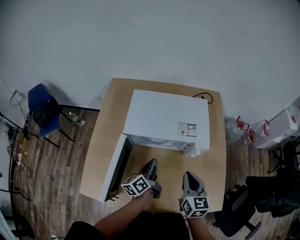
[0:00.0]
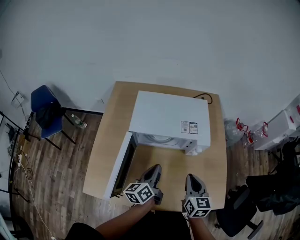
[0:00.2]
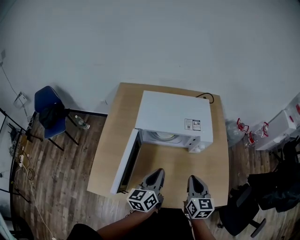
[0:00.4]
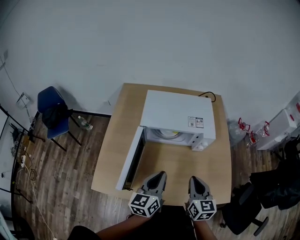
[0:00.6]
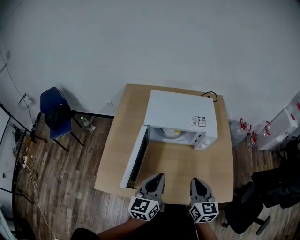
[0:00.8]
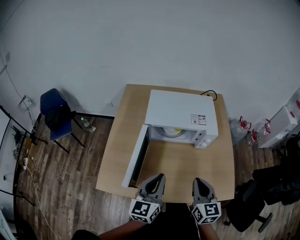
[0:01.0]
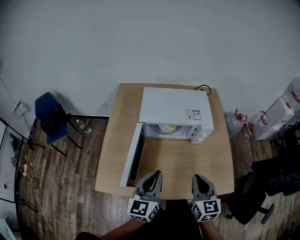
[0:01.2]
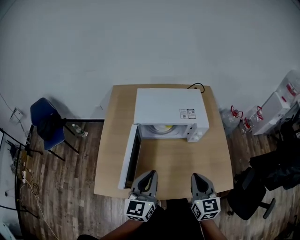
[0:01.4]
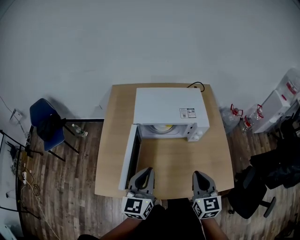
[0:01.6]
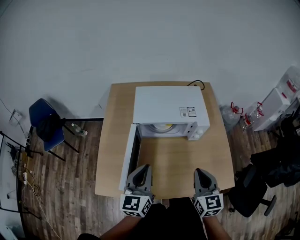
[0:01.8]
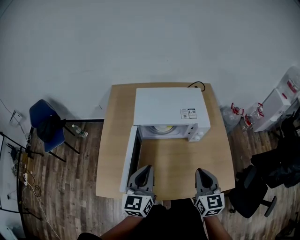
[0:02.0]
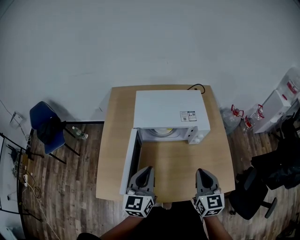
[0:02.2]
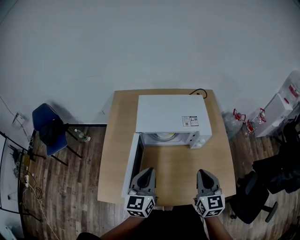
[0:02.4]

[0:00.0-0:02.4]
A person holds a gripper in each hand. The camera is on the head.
0:00.0 to 0:01.2: The right gripper changes place by about 15 cm.
0:01.2 to 0:02.4: The right gripper moves roughly 5 cm.

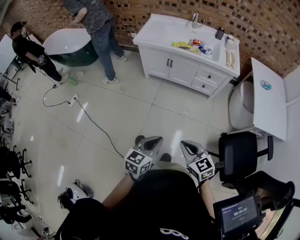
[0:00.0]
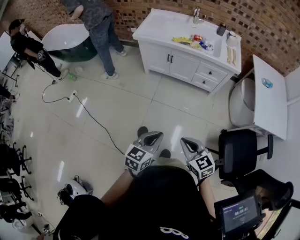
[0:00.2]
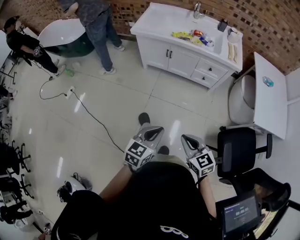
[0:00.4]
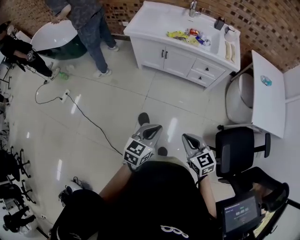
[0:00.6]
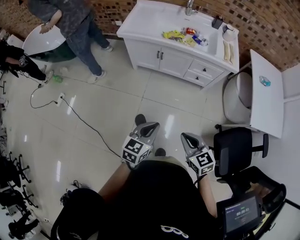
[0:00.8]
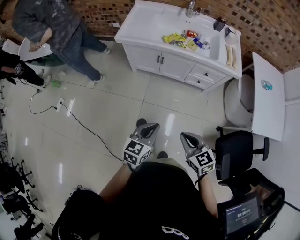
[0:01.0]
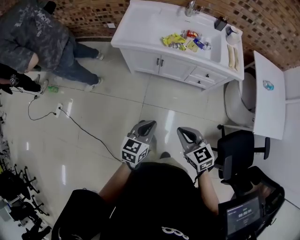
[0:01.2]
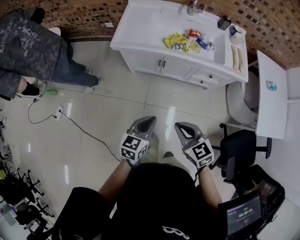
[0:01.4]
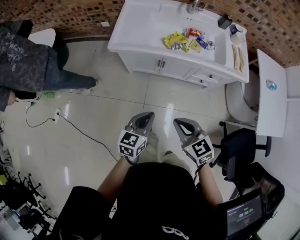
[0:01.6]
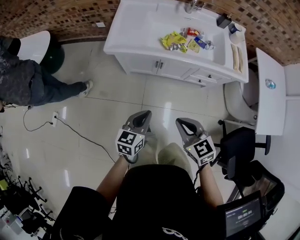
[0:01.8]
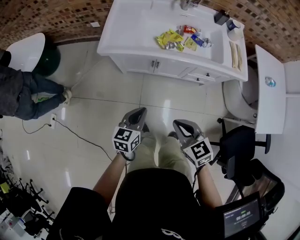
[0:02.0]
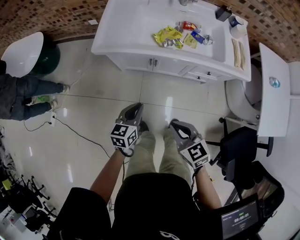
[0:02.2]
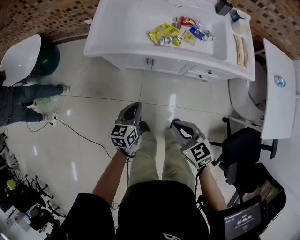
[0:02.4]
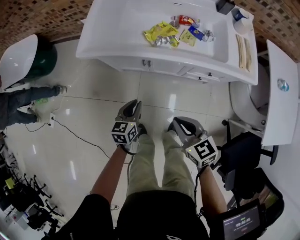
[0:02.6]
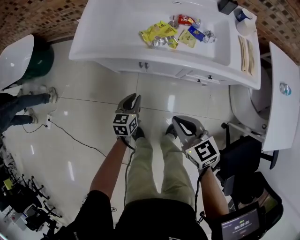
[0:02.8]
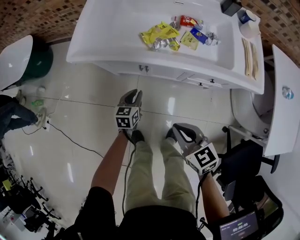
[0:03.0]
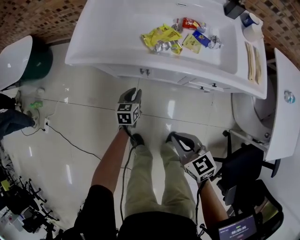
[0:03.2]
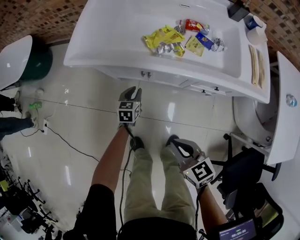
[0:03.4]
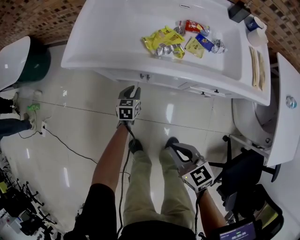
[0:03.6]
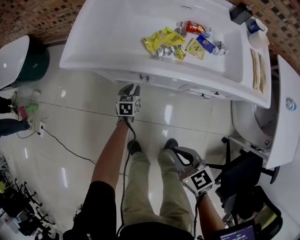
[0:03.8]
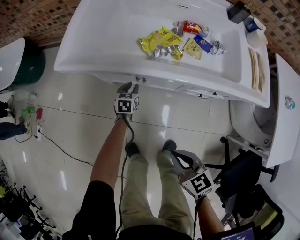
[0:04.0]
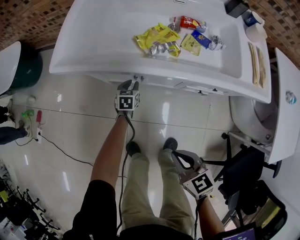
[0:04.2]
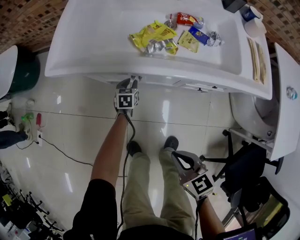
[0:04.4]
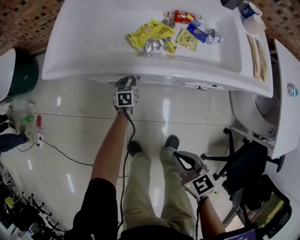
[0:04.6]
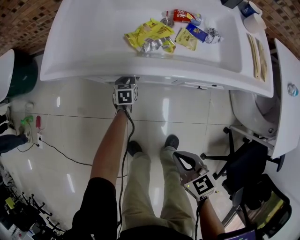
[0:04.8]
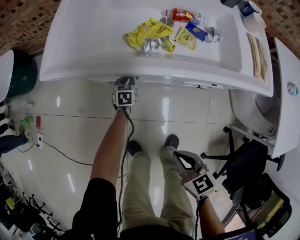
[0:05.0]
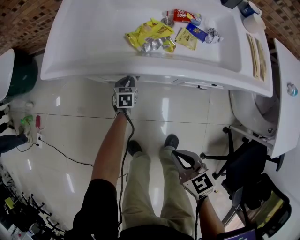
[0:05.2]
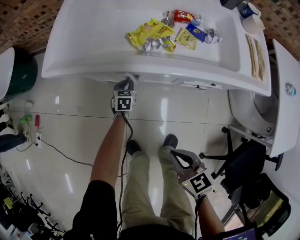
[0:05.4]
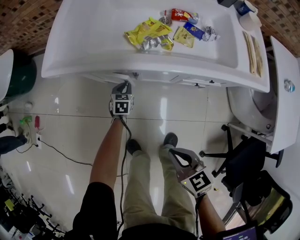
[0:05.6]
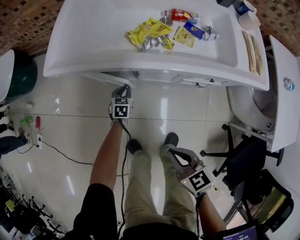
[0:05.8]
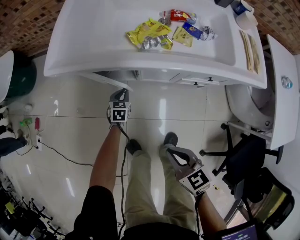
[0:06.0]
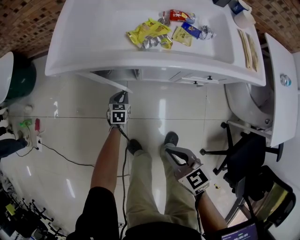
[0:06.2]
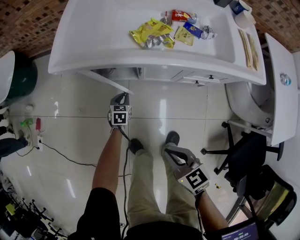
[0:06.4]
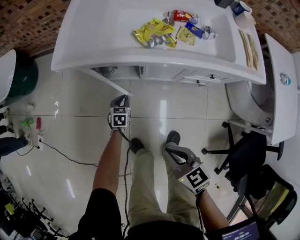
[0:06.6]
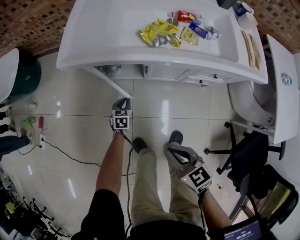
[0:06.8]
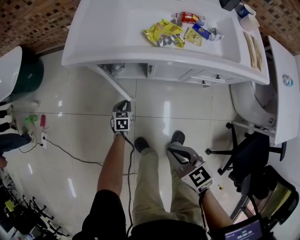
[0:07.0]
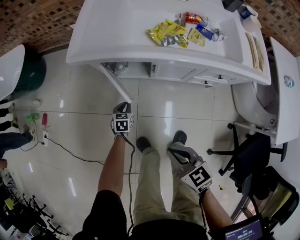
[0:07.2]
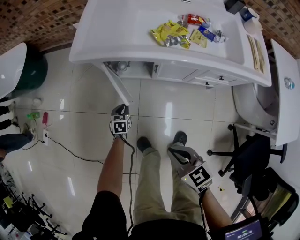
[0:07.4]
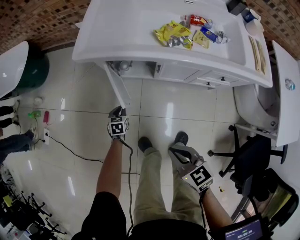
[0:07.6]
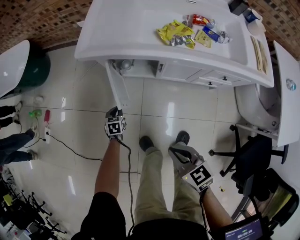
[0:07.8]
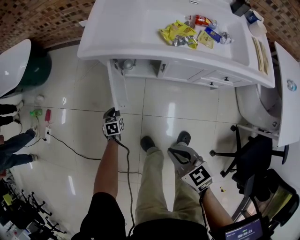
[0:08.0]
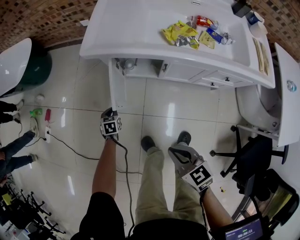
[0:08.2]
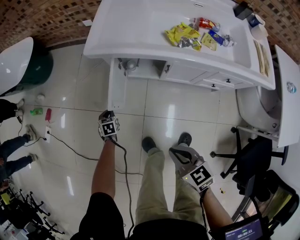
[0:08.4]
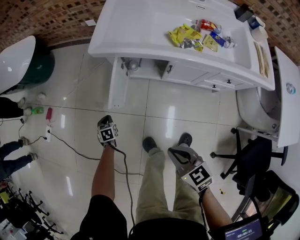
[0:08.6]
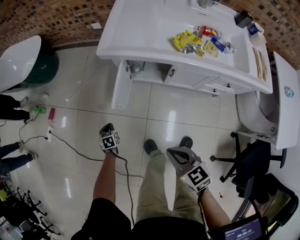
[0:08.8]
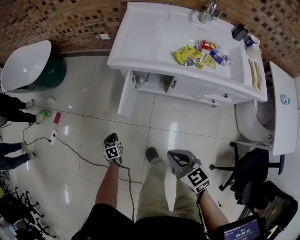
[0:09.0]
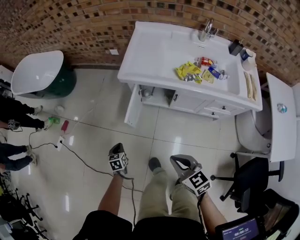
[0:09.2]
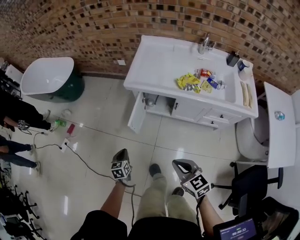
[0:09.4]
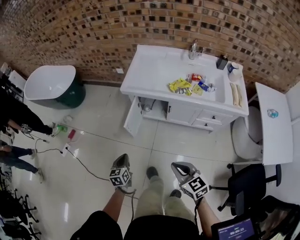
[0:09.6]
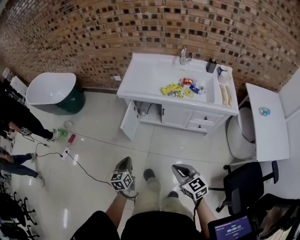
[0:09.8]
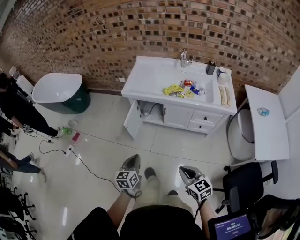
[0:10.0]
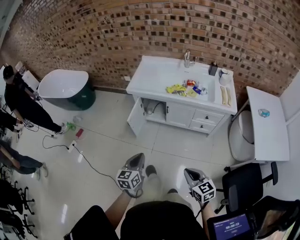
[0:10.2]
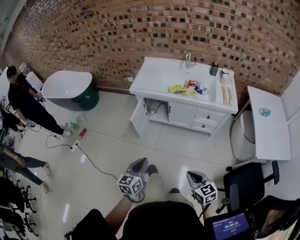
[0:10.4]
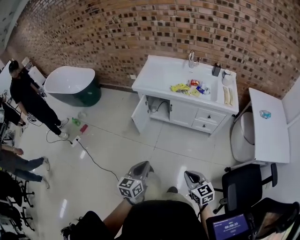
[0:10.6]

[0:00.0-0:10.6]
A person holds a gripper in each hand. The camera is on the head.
0:00.0 to 0:01.6: Both grippers are carried forward, about 40 cm.
0:01.6 to 0:03.0: The left gripper moves downward and forward, about 35 cm, while the right gripper moves downward, to the right and forward, some 25 cm.
0:03.0 to 0:04.6: The left gripper heads downward and forward, covering roughly 20 cm. The right gripper goes some 10 cm downward.
0:04.6 to 0:06.0: The left gripper goes approximately 10 cm backward and to the left.
0:06.0 to 0:07.6: The right gripper goes roughly 10 cm to the left, while the left gripper travels to the left and backward by roughly 20 cm.
0:07.6 to 0:09.0: The left gripper moves to the left, about 20 cm; the right gripper shifts roughly 10 cm to the left and upward.
0:09.0 to 0:10.6: The left gripper goes some 60 cm upward, backward and to the right, and points its fingers some 40 degrees further upward. The right gripper goes some 35 cm backward and upward.

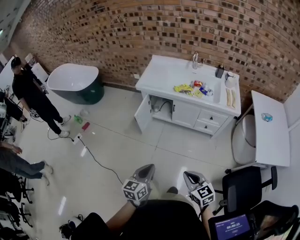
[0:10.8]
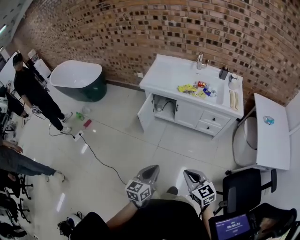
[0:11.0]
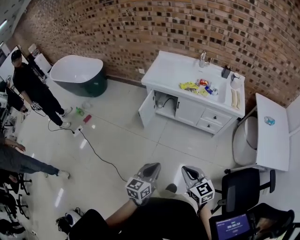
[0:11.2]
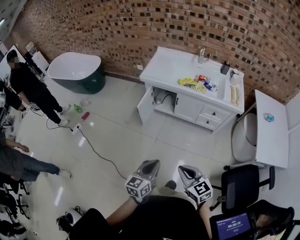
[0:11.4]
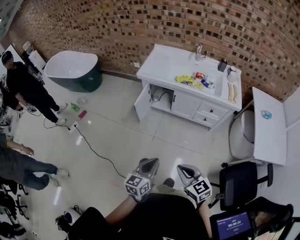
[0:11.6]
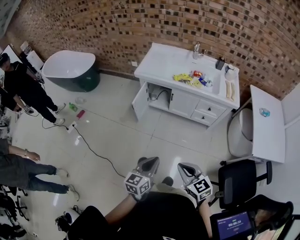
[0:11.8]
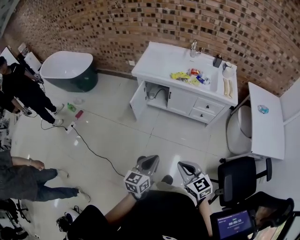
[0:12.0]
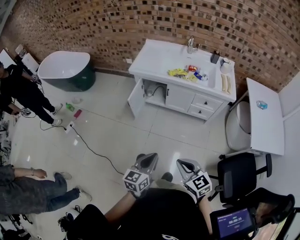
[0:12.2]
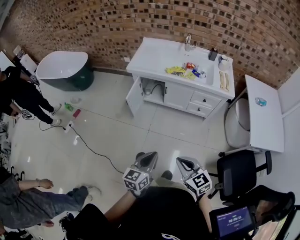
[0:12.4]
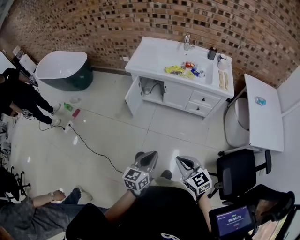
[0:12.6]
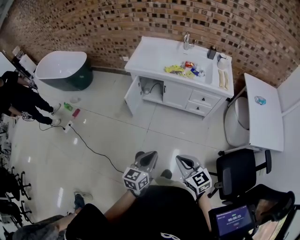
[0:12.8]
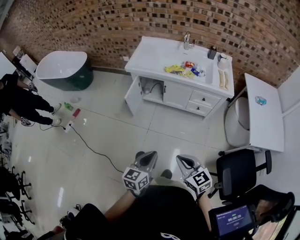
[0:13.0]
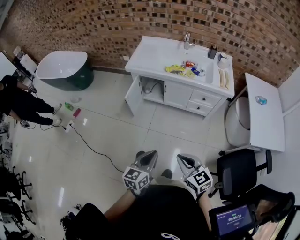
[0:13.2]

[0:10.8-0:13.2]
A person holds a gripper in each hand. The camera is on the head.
0:10.8 to 0:13.2: The grippers stay close to where they were, moving slightly.

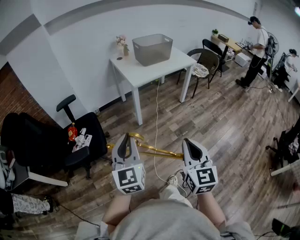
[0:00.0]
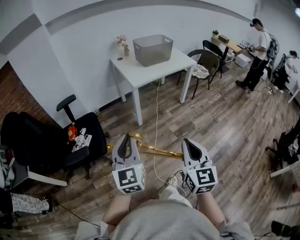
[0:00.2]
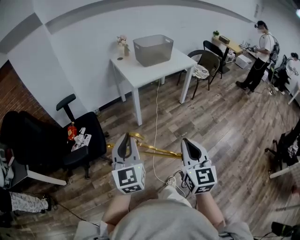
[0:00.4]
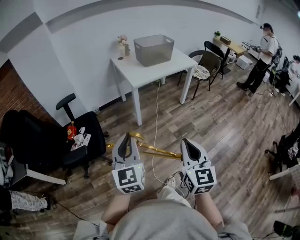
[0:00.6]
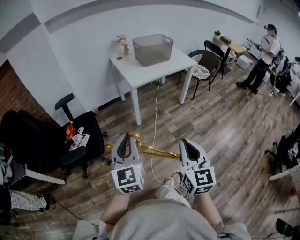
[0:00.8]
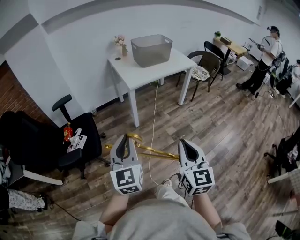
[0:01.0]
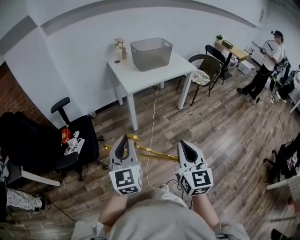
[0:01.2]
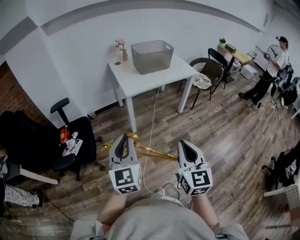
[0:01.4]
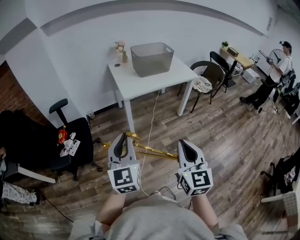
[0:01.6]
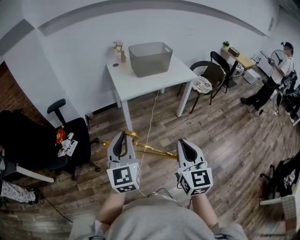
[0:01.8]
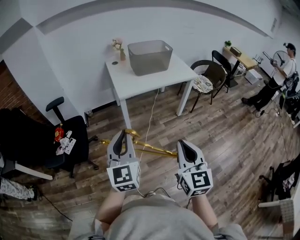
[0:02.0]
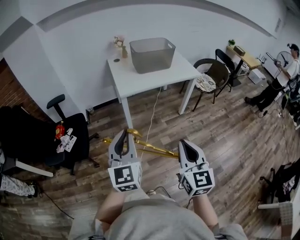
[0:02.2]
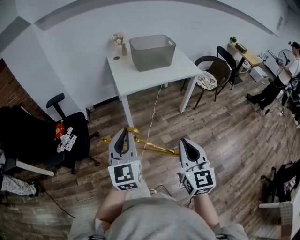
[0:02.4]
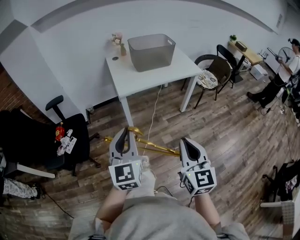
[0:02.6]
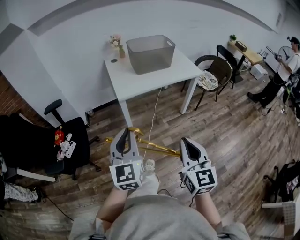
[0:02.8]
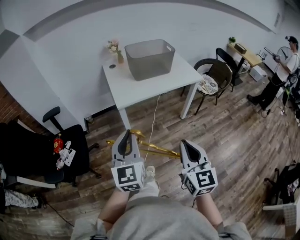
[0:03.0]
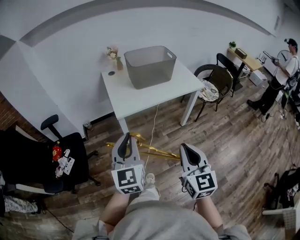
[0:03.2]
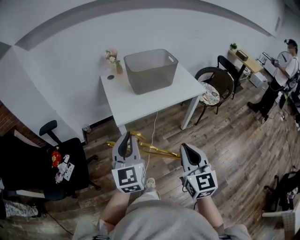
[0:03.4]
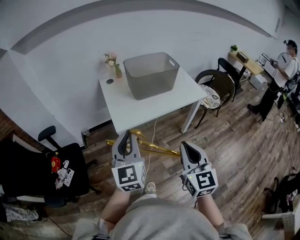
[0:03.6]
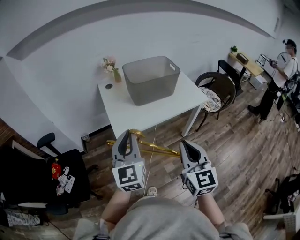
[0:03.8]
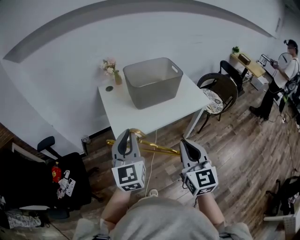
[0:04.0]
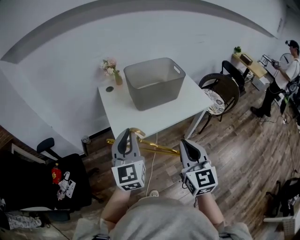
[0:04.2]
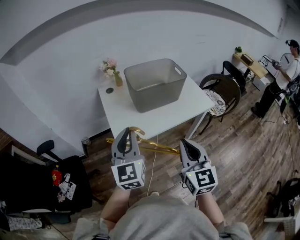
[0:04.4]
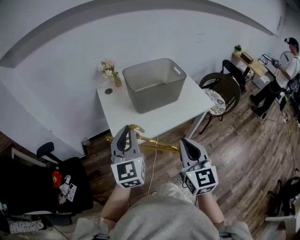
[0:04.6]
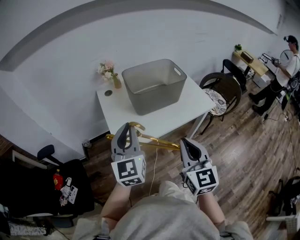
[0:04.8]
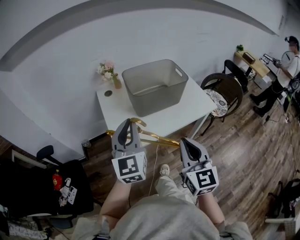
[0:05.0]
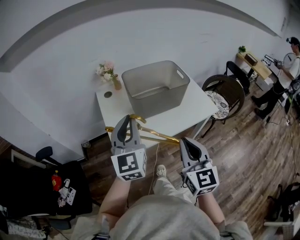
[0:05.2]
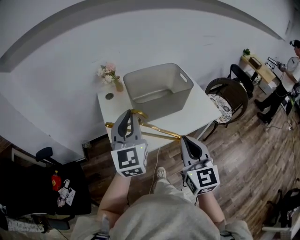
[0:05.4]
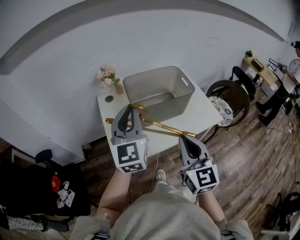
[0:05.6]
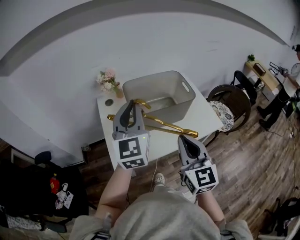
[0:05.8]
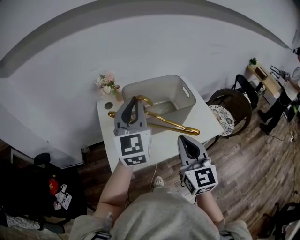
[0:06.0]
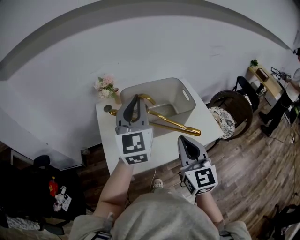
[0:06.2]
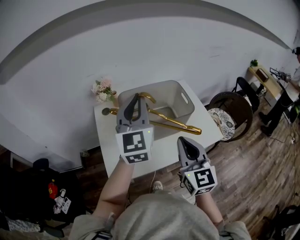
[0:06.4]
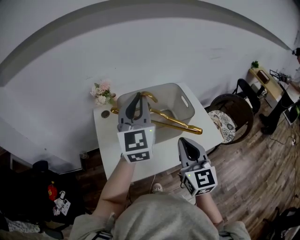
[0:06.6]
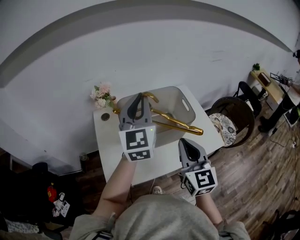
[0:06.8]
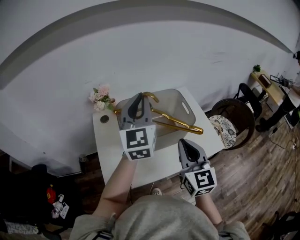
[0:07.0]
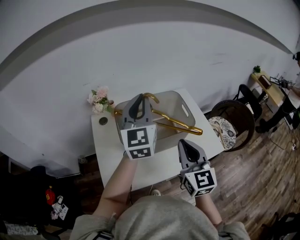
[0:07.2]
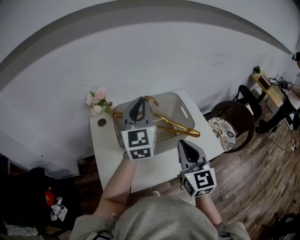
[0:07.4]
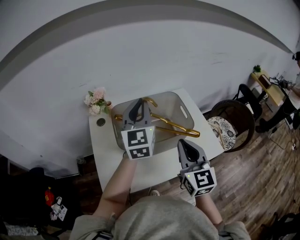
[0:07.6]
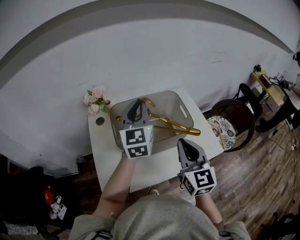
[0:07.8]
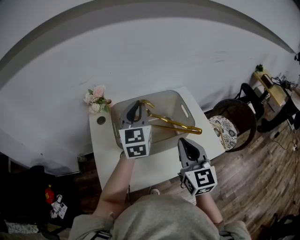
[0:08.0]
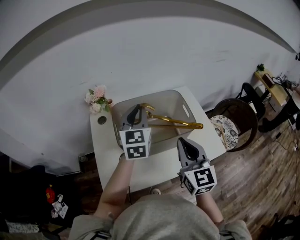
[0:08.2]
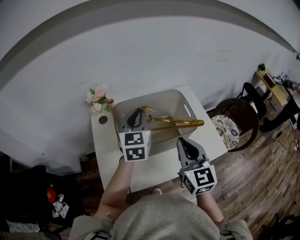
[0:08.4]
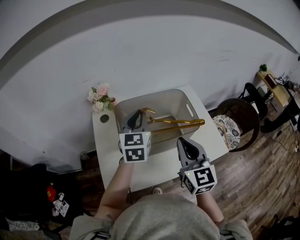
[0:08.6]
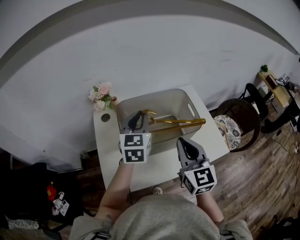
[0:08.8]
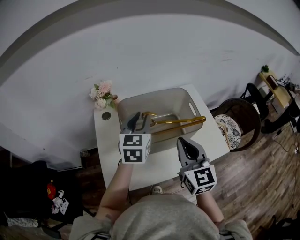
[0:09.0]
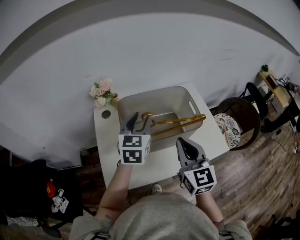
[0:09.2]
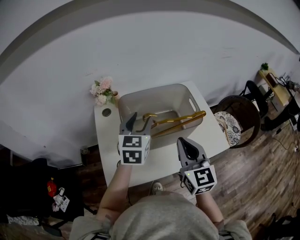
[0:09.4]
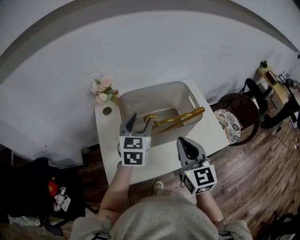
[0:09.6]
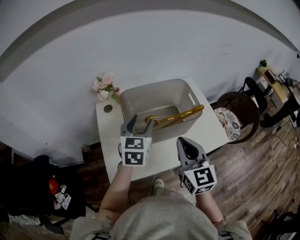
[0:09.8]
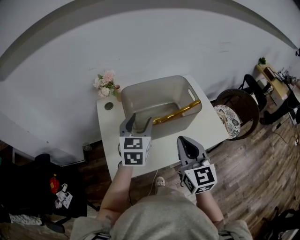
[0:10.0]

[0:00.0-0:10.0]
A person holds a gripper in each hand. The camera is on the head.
0:00.0 to 0:01.4: The left gripper is displaced to the right and forward by roughly 15 cm. The right gripper is displaced forward and to the right by some 15 cm.
0:01.4 to 0:02.8: The two grippers go roughly 15 cm forward and to the right.
0:02.8 to 0:04.2: The grippers both shift forward by some 35 cm.
0:04.2 to 0:05.8: Both grippers move forward, approximately 20 cm.
0:05.8 to 0:07.2: The grippers both shift forward and to the right by some 15 cm.
0:07.2 to 0:08.6: The left gripper moves downward, approximately 10 cm, and swivels some 20 degrees.
0:08.6 to 0:10.0: The two grippers go some 10 cm backward. The left gripper opens.
